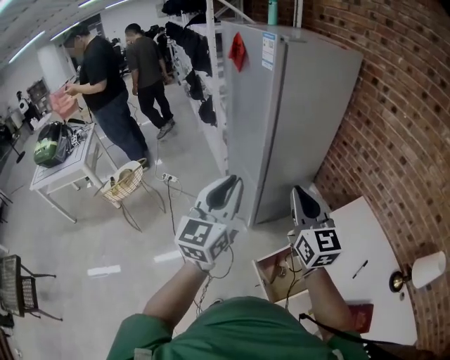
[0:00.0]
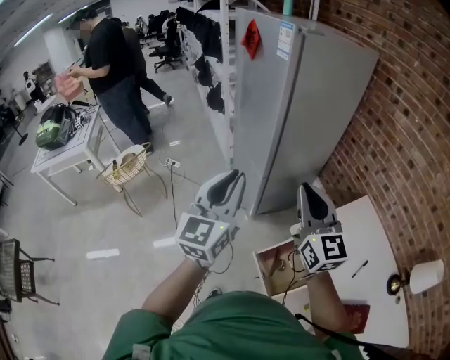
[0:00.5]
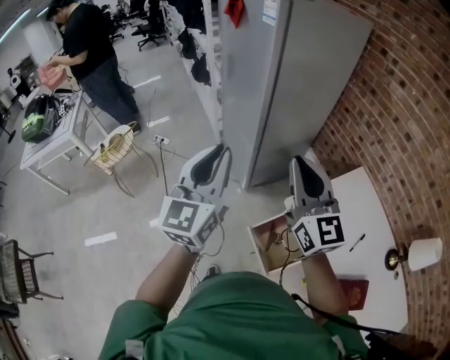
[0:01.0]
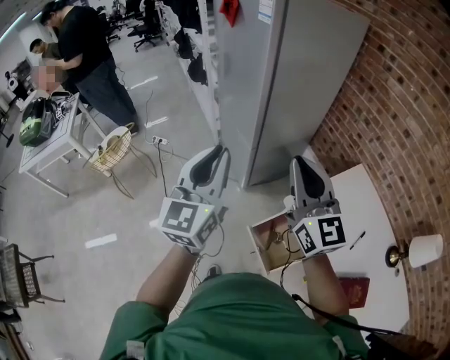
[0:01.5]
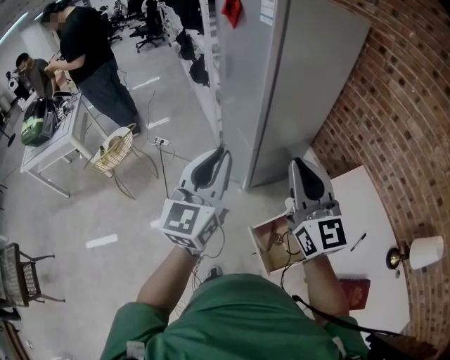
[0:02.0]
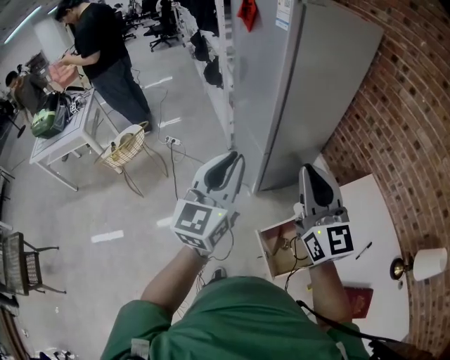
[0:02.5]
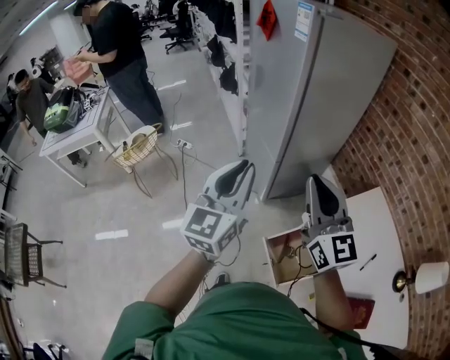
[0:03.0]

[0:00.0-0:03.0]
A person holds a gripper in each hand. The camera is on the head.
0:00.0 to 0:03.0: The grippers move only a little.

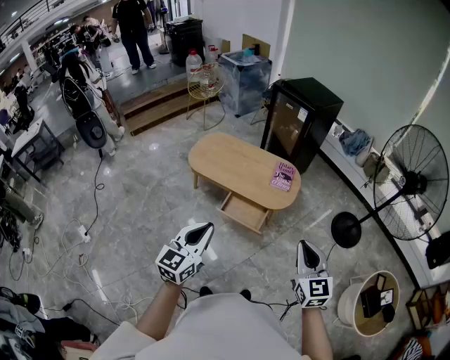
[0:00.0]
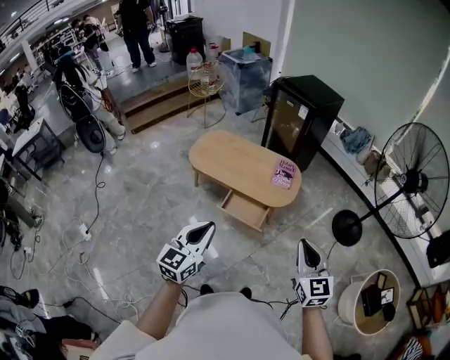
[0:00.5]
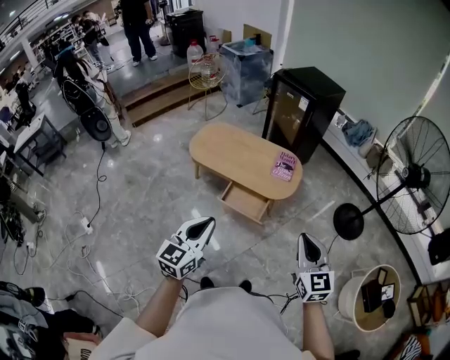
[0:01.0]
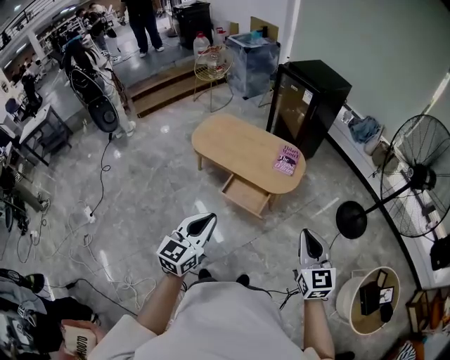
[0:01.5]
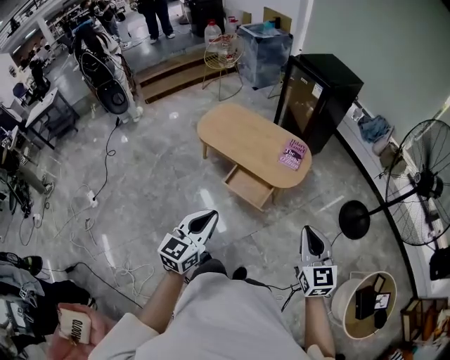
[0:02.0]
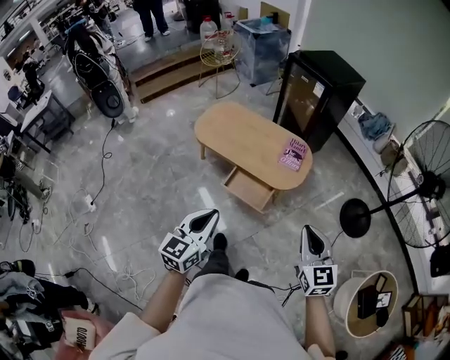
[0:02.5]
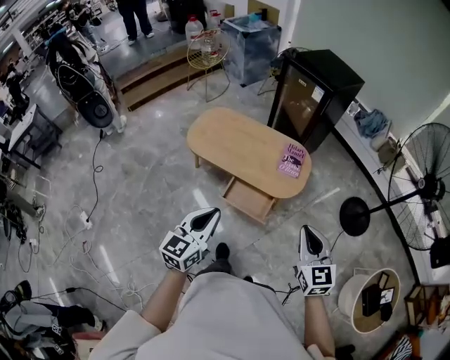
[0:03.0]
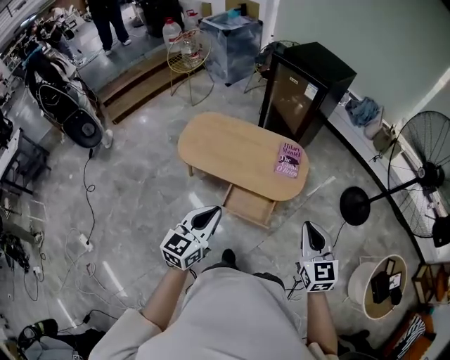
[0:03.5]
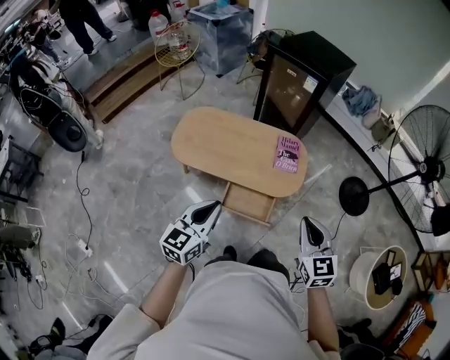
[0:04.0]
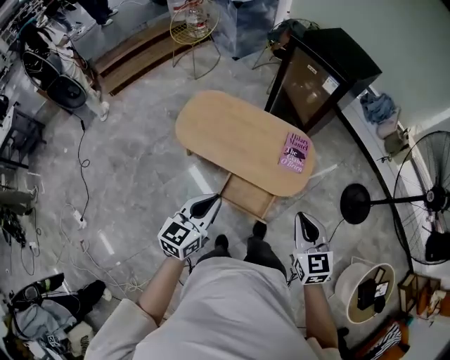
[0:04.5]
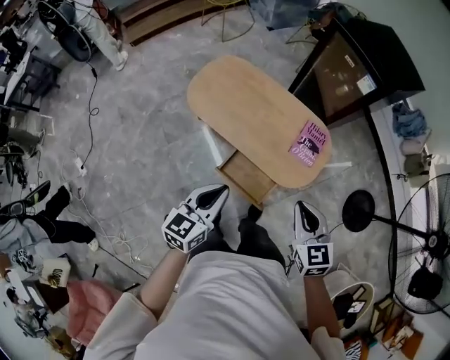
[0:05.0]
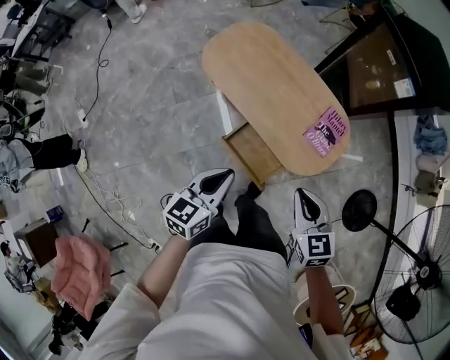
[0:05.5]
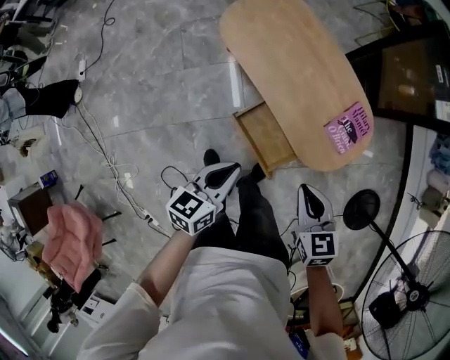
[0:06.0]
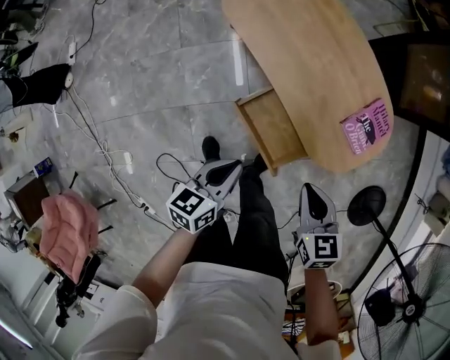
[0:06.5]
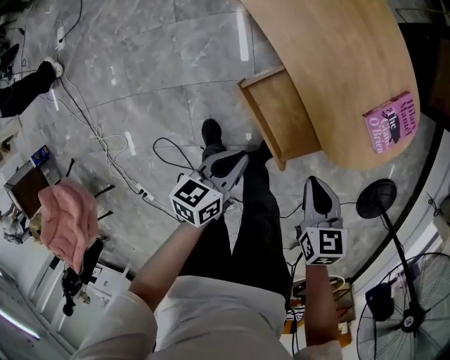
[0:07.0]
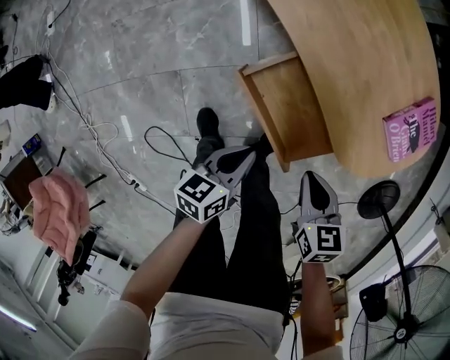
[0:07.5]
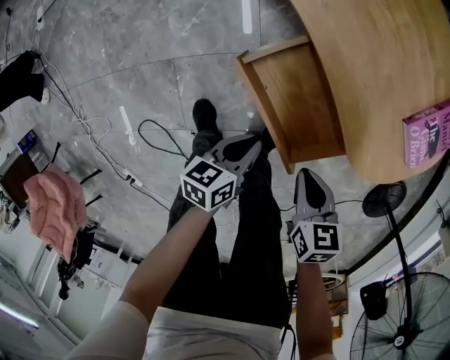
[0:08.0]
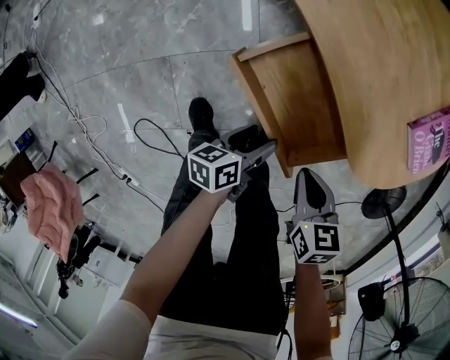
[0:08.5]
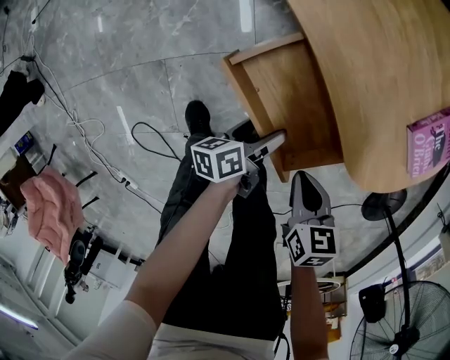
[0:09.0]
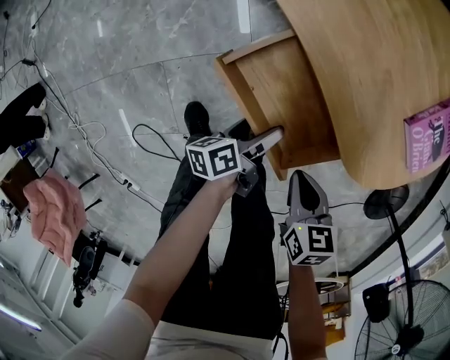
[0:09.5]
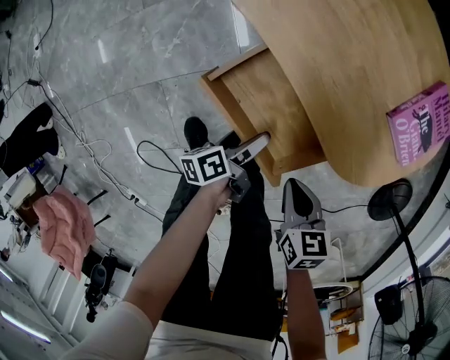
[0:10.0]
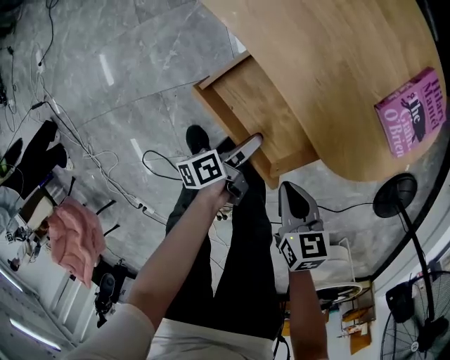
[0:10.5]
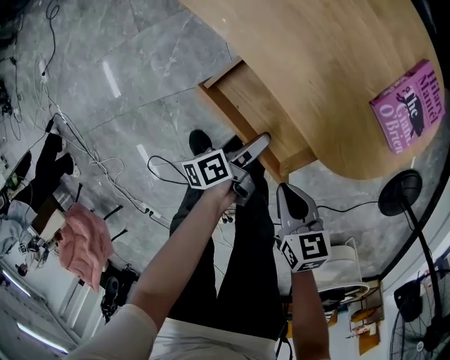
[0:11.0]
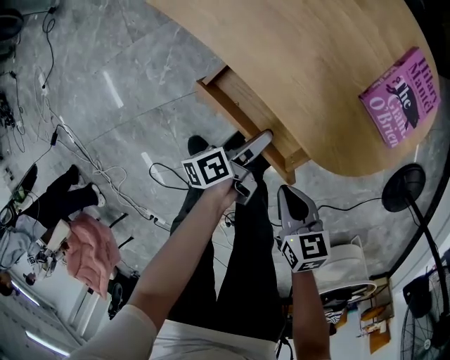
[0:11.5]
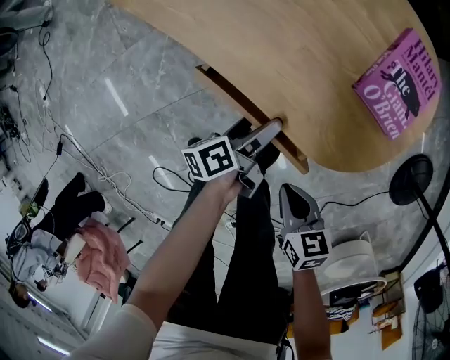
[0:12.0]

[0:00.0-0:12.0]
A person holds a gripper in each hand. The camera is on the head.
0:00.0 to 0:02.0: Both grippers travel together to the right, approximately 10 cm.
0:02.0 to 0:04.0: The two grippers go some 30 cm forward and to the left.
0:04.0 to 0:06.0: The two grippers go some 25 cm downward. The left gripper swivels roughly 40 degrees, while the right gripper changes its angle by approximately 50 degrees.
0:06.0 to 0:08.0: The two grippers go approximately 40 cm downward. The left gripper turns by some 30 degrees. The right gripper changes its angle by roughly 20 degrees.
0:08.0 to 0:10.0: The left gripper moves downward, some 5 cm, changes its angle by some 30 degrees, and opens.
0:10.0 to 0:12.0: The left gripper goes approximately 15 cm to the right and forward; the right gripper ends up roughly 5 cm from where it was.

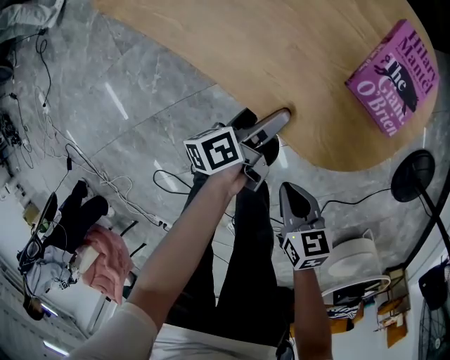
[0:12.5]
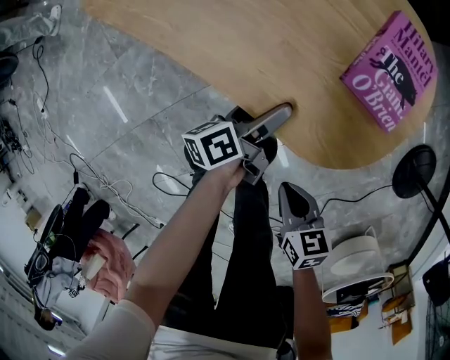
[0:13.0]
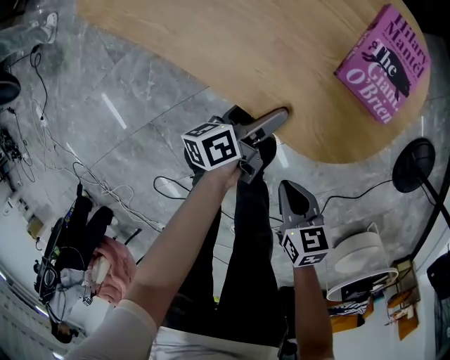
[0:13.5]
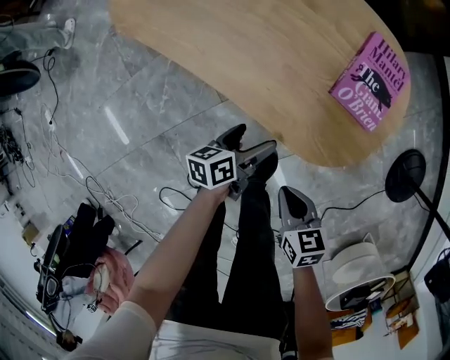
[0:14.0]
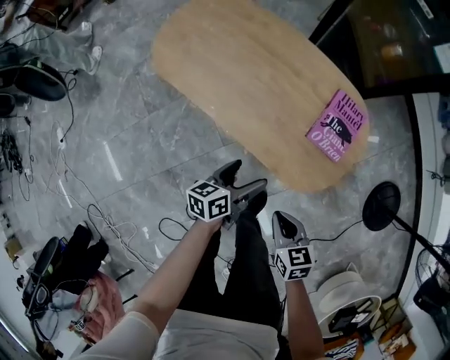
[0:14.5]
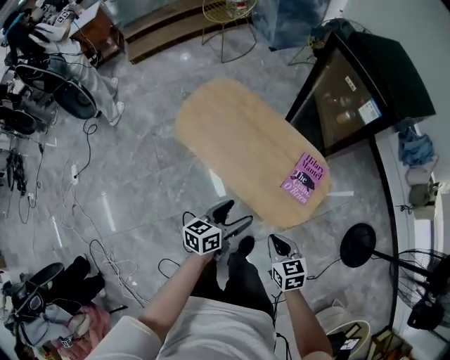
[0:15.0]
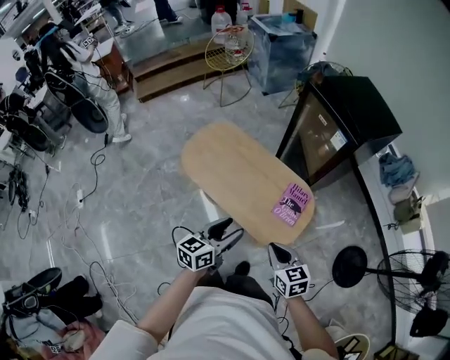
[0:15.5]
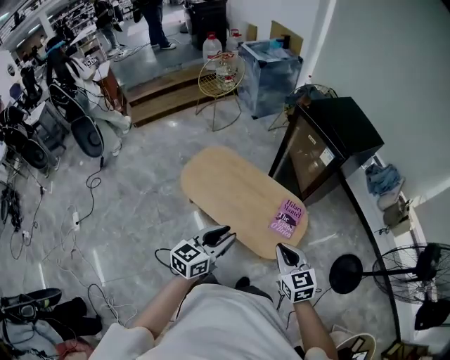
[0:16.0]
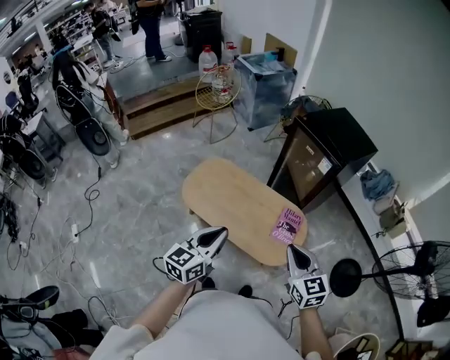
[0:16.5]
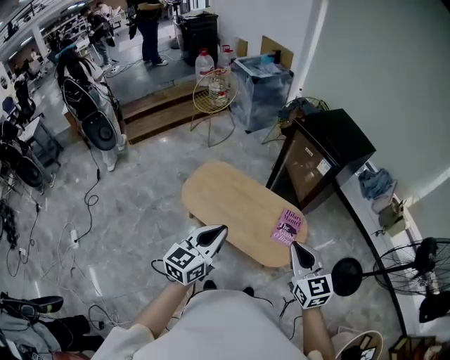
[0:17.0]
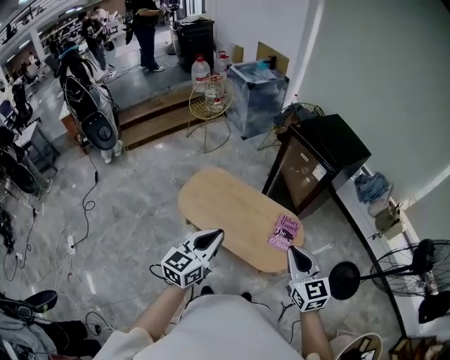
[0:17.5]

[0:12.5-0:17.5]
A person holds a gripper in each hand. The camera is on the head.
0:12.5 to 0:15.0: The two grippers go about 40 cm upward. The right gripper rotates some 20 degrees. The left gripper rotates around the line of its fingers by roughly 40 degrees, clockwise from behind.
0:15.0 to 0:17.5: Both grippers travel together upward, approximately 35 cm. The left gripper turns by approximately 30 degrees, and closes, while the right gripper rotates some 40 degrees.

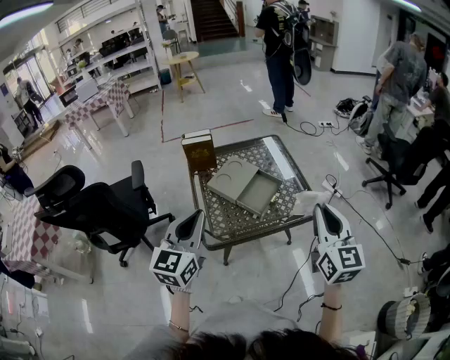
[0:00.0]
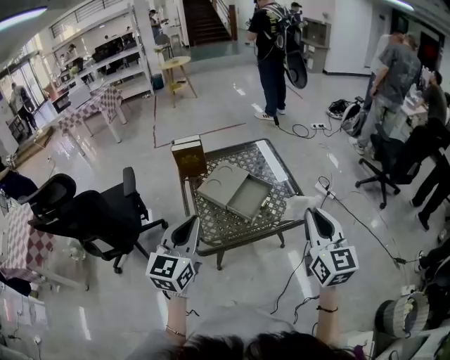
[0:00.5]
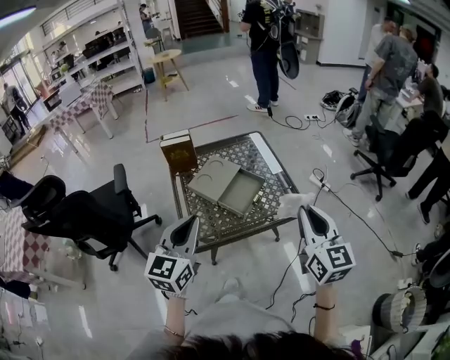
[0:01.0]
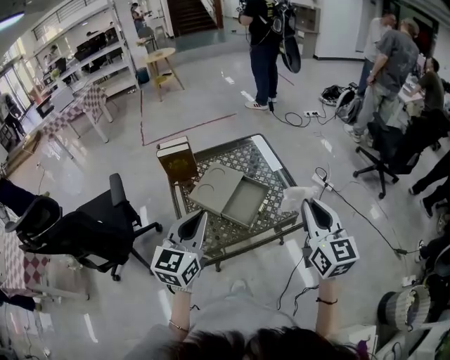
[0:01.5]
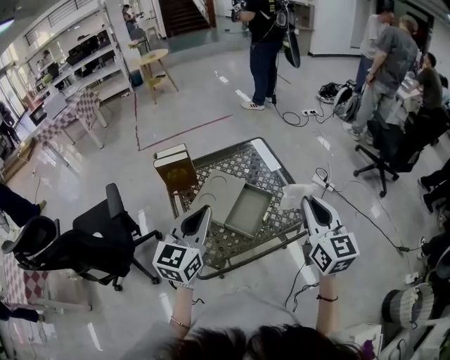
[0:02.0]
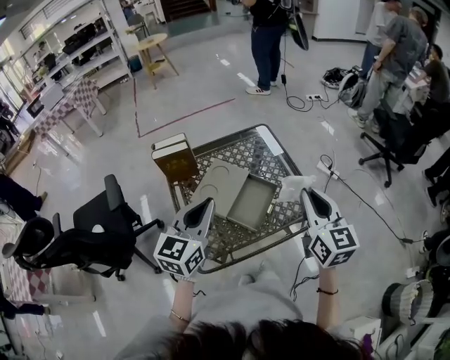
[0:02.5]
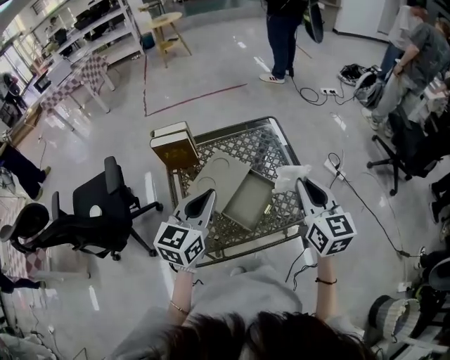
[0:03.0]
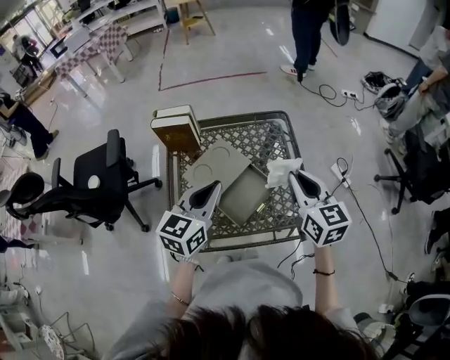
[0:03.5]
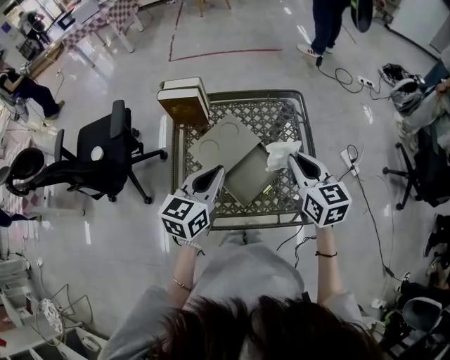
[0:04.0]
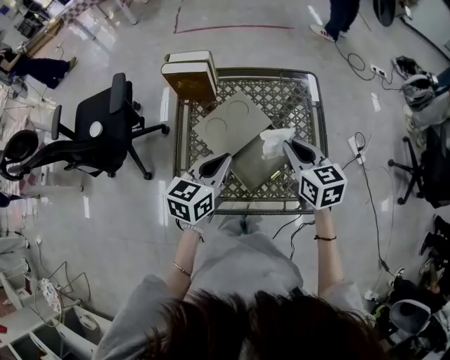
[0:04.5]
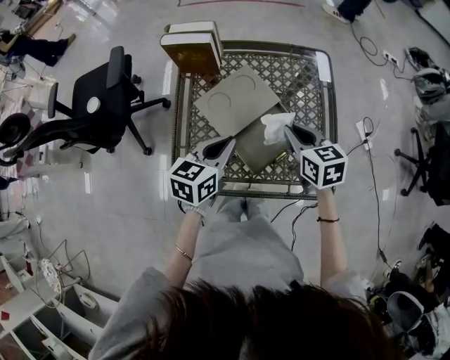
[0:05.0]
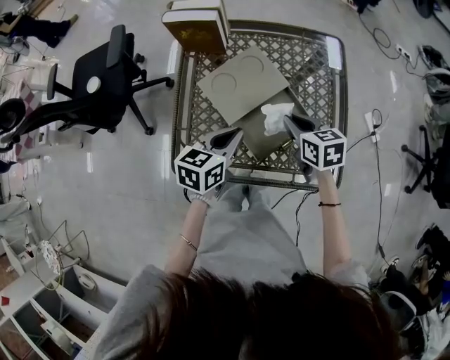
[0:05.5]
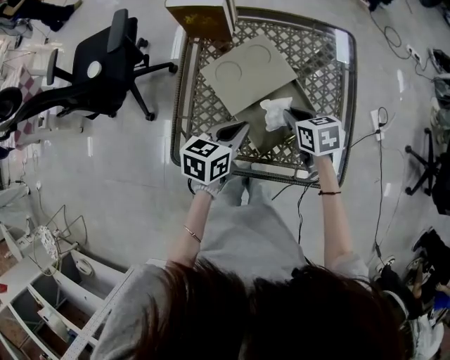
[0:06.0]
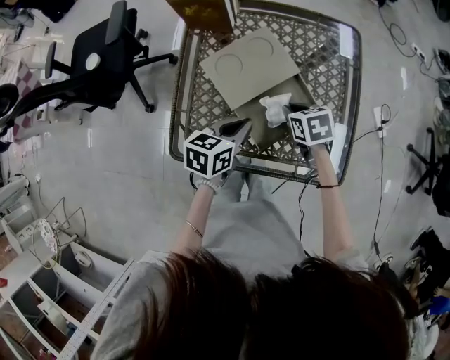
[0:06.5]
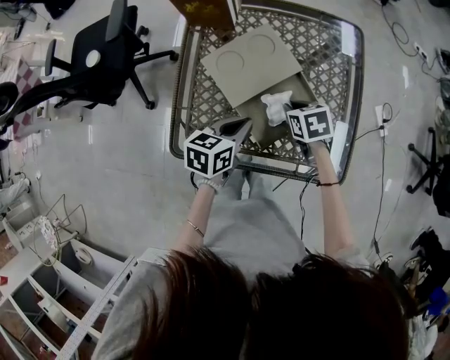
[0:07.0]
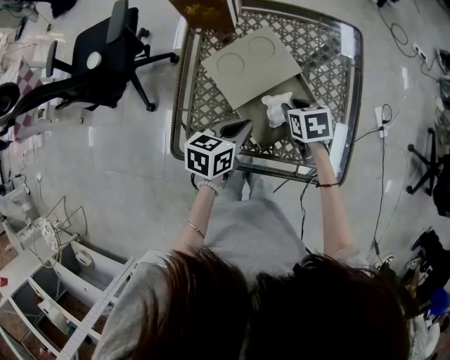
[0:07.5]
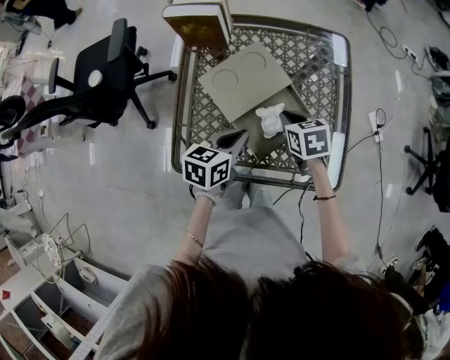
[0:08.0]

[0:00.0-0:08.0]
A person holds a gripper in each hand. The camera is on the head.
0:00.0 to 0:02.0: Both grippers move forward, roughly 15 cm.
0:02.0 to 0:04.0: The left gripper is displaced downward, forward and to the right by some 15 cm, and rotates roughly 20 degrees, while the right gripper heads forward and downward, covering about 20 cm, and rotates some 30 degrees.
0:04.0 to 0:06.0: Both grippers travel together downward, about 20 cm. The right gripper changes its angle by approximately 40 degrees. Meanwhile the left gripper changes its angle by approximately 20 degrees.
0:06.0 to 0:08.0: The right gripper opens, then closes again.
